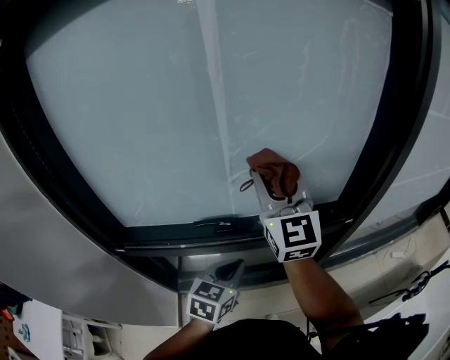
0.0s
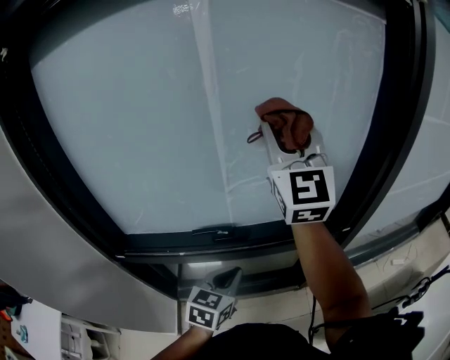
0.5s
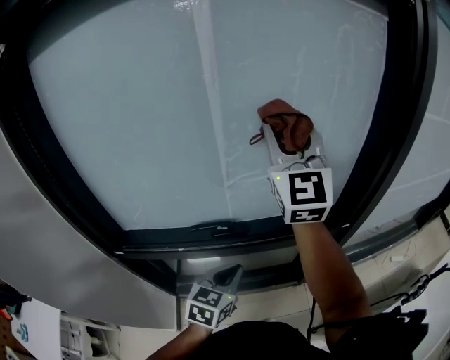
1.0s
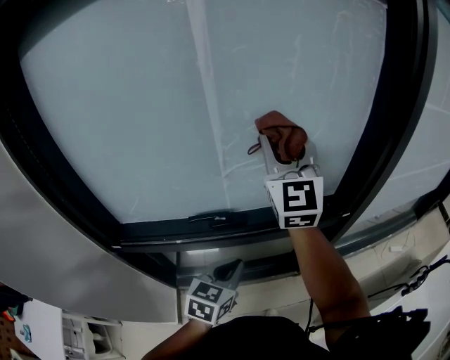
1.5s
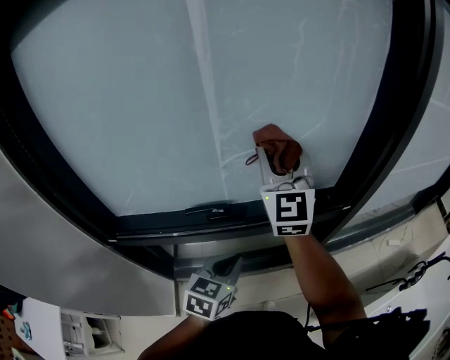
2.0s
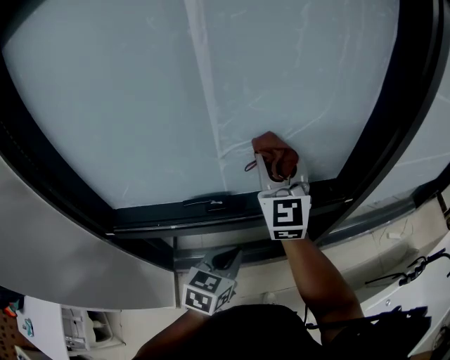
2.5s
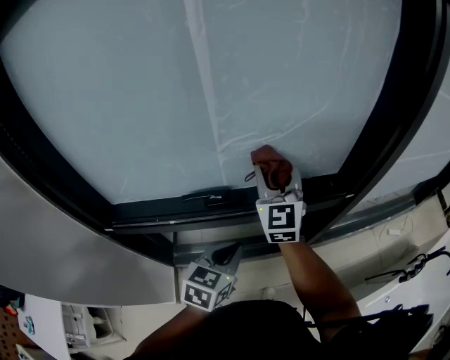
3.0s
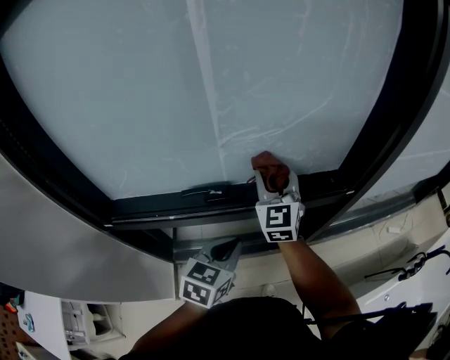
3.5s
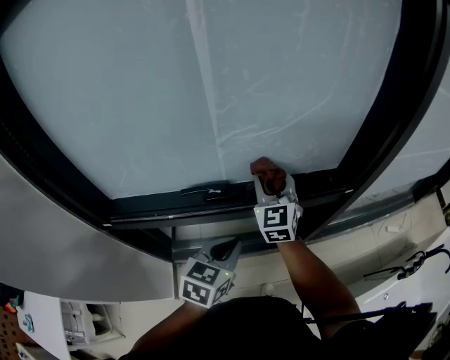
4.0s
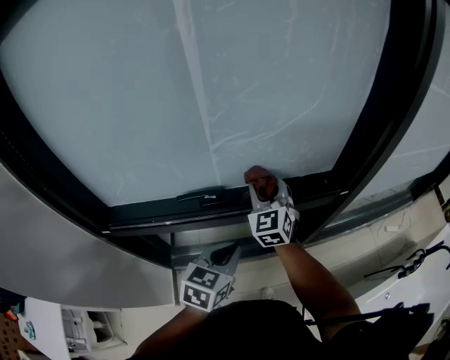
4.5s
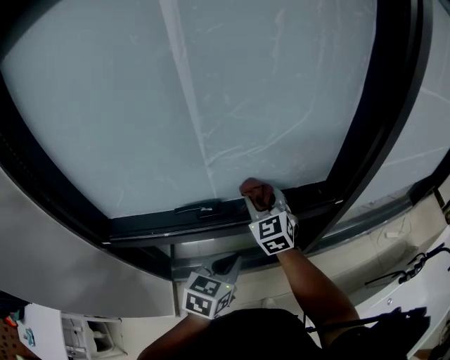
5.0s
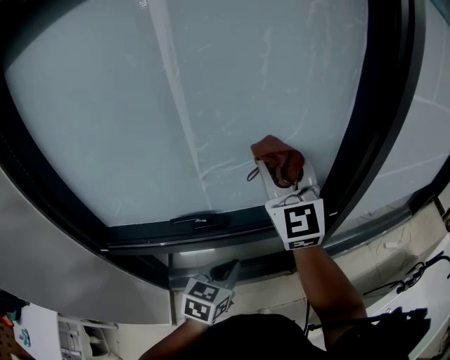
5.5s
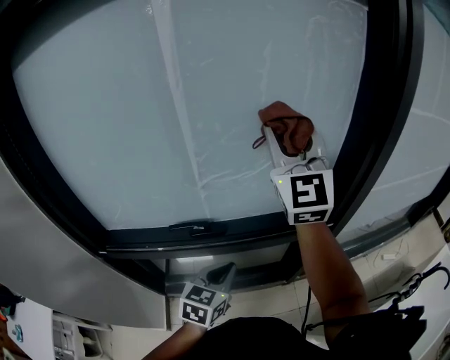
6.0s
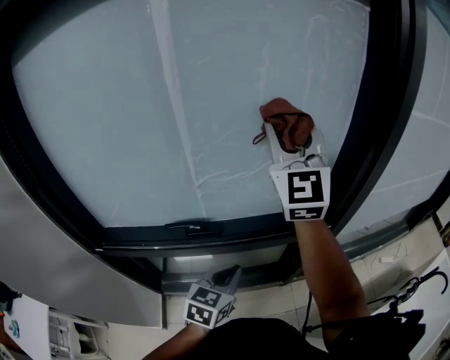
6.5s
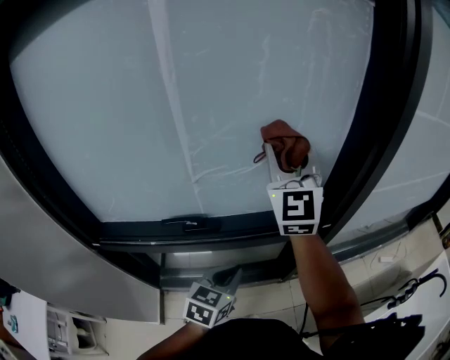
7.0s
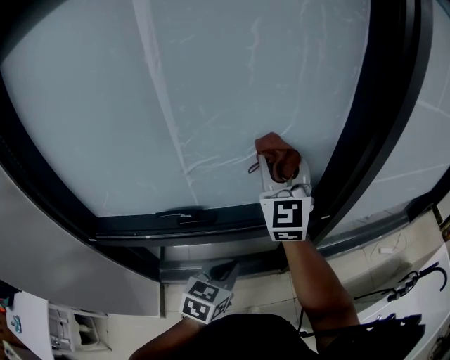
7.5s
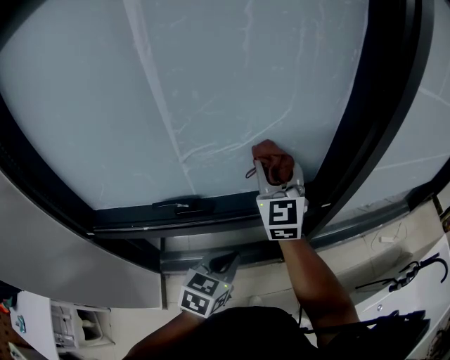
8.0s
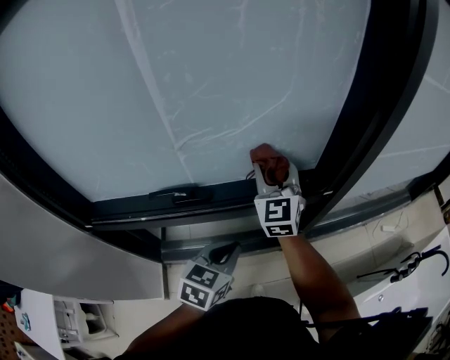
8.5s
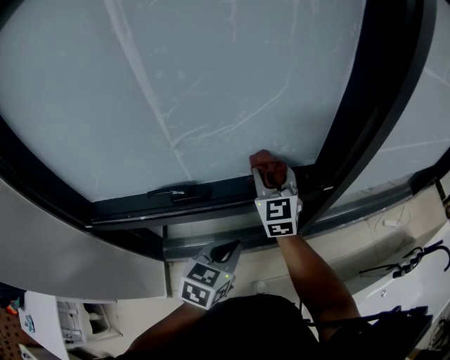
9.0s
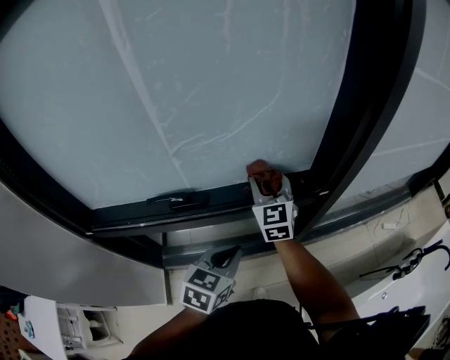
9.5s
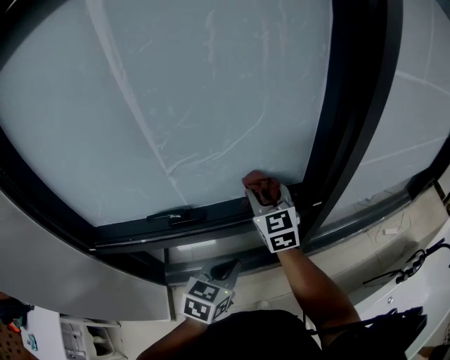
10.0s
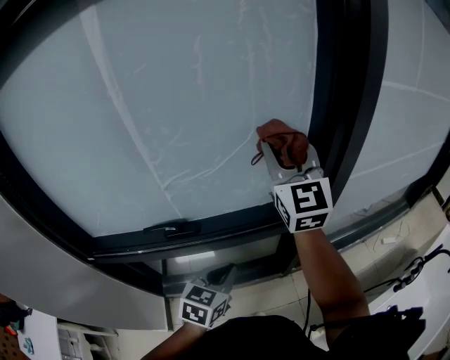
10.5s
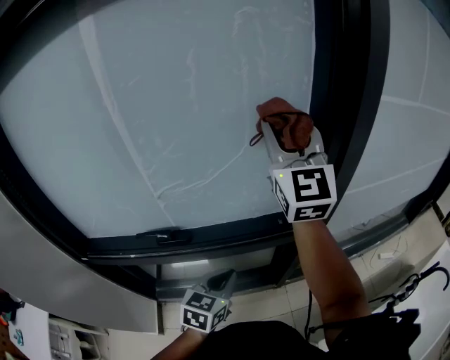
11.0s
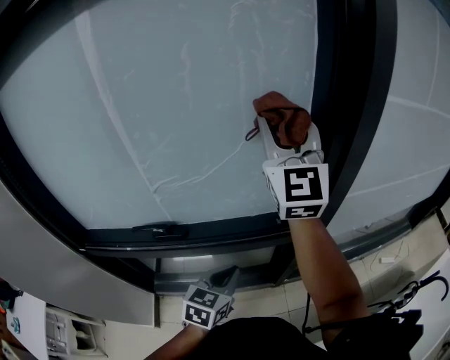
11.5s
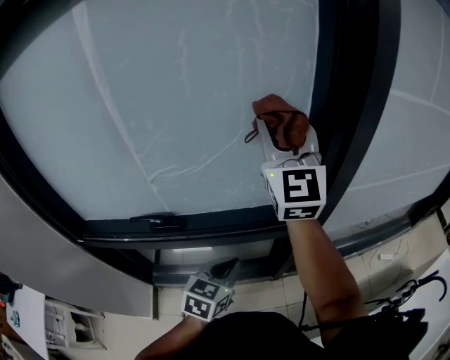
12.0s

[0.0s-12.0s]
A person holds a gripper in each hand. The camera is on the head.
0.0s to 2.0s: The right gripper moves roughly 15 cm upward and comes back.
2.0s to 4.0s: The right gripper shifts some 20 cm downward.
4.0s to 6.0s: The right gripper shifts some 30 cm upward, and swivels some 30 degrees.
6.0s to 8.0s: The right gripper travels downward by approximately 20 cm. The left gripper moves some 5 cm.
8.0s to 10.0s: The right gripper is displaced downward by about 10 cm.
10.0s to 12.0s: The left gripper heads to the right, covering about 5 cm. The right gripper travels upward by roughly 25 cm, and turns by roughly 30 degrees.

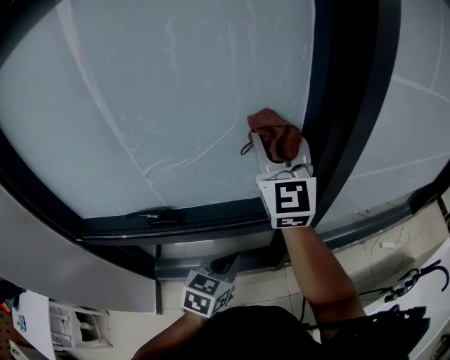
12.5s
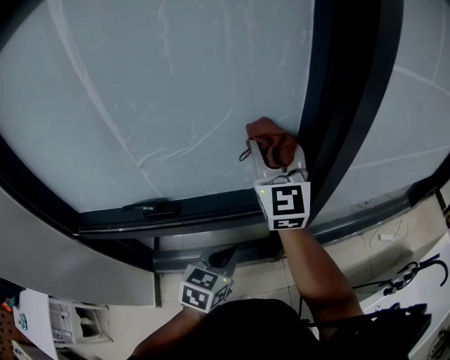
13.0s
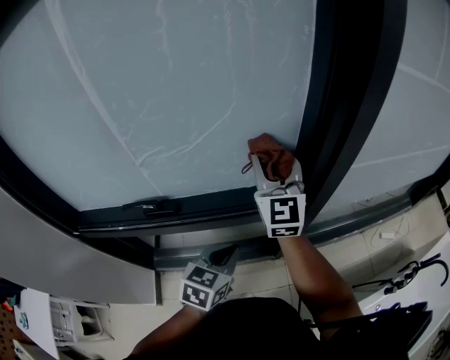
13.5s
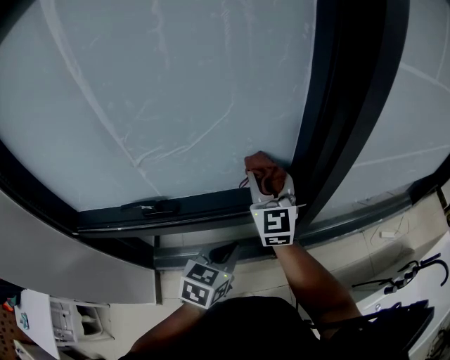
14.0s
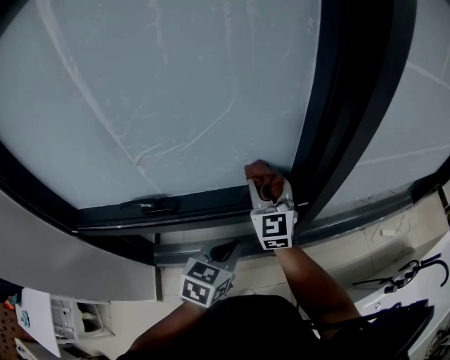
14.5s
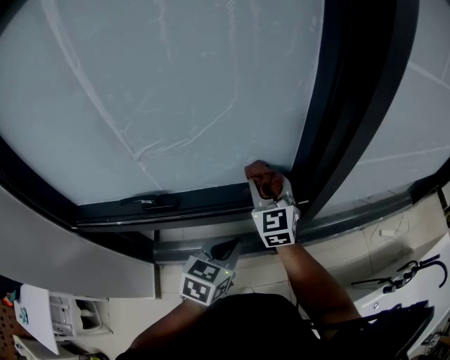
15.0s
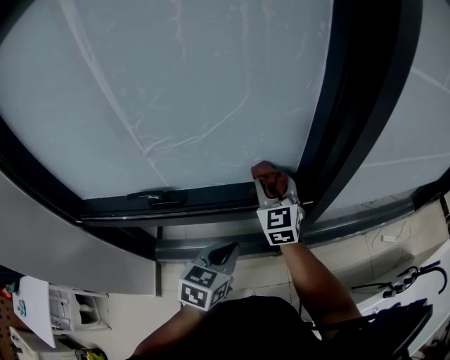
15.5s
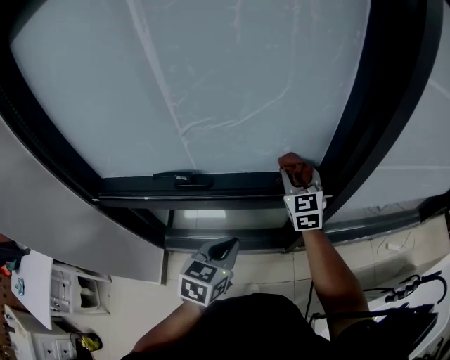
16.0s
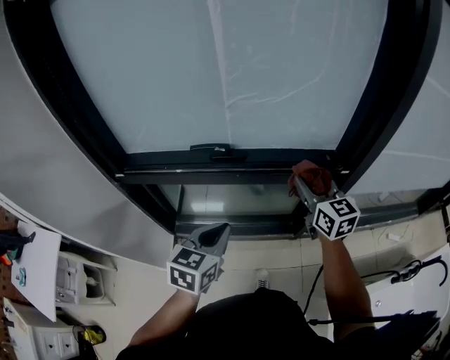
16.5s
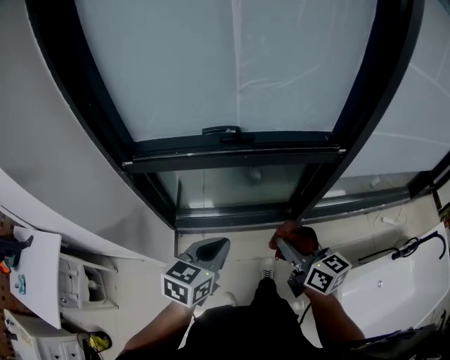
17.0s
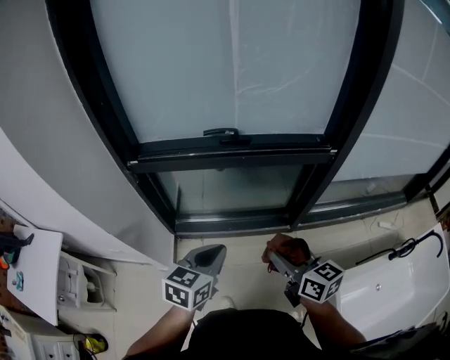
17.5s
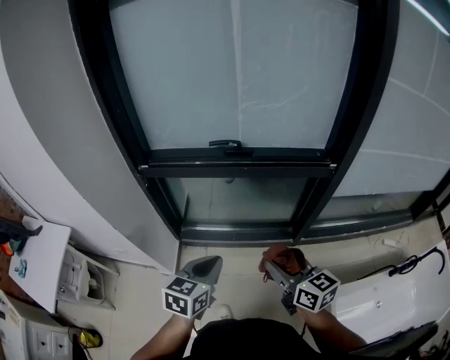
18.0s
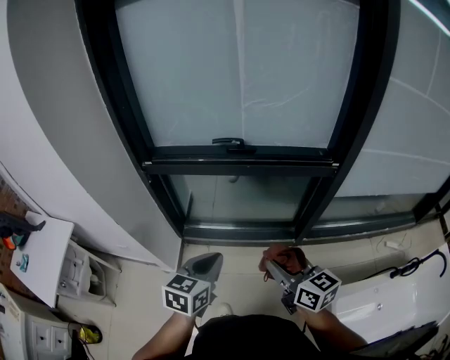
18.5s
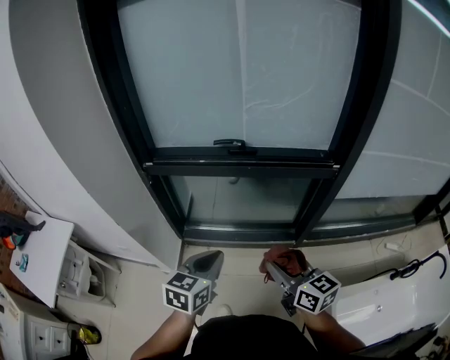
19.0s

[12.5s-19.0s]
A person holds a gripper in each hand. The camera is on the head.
12.5s to 14.5s: The right gripper heads downward, covering roughly 20 cm.
14.5s to 17.0s: The left gripper heads backward and to the left, covering roughly 35 cm; the right gripper heads backward, covering approximately 40 cm, and twists approximately 40 degrees clockwise, seen from behind.
17.0s to 19.0s: The two grippers go some 10 cm backward.

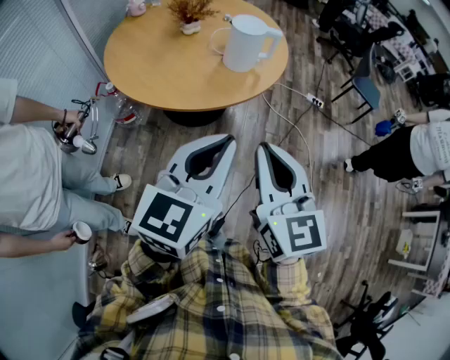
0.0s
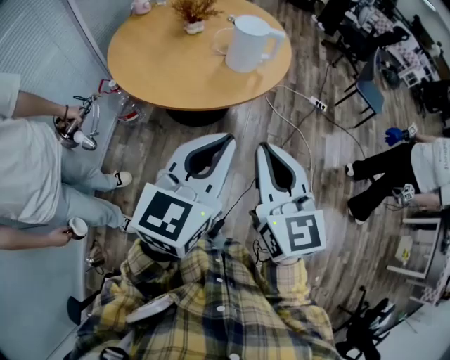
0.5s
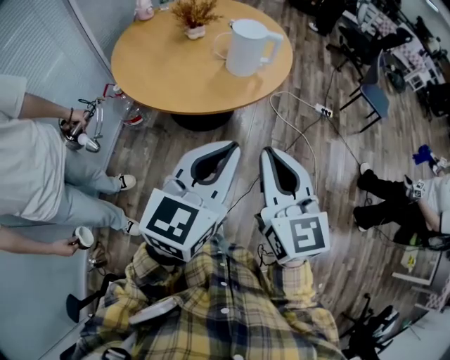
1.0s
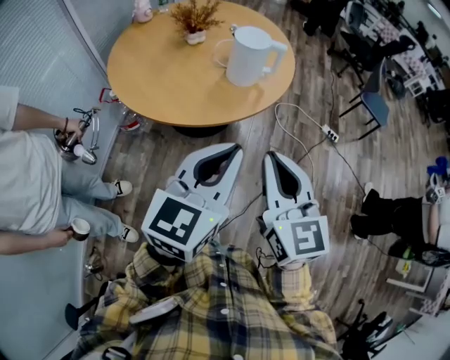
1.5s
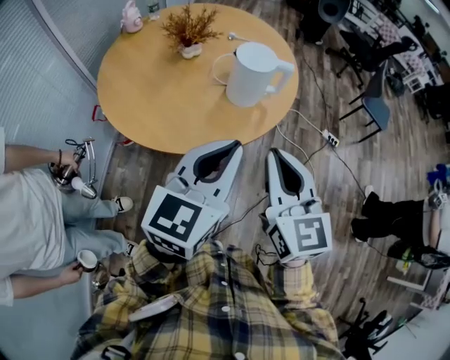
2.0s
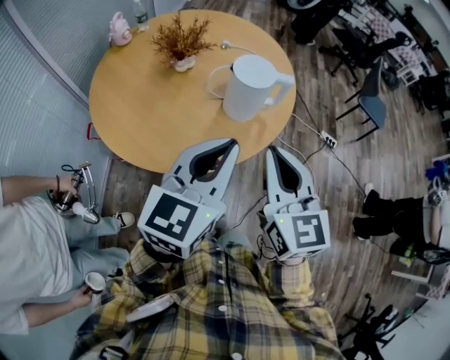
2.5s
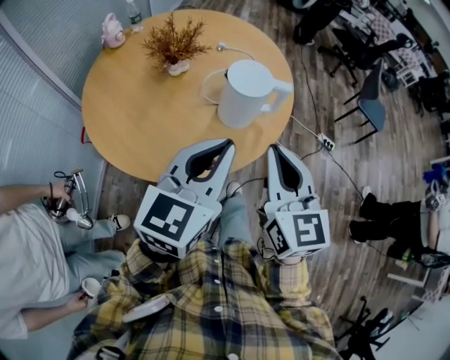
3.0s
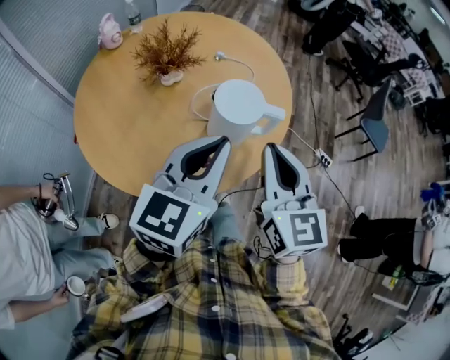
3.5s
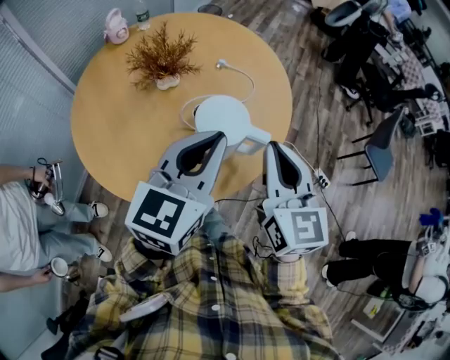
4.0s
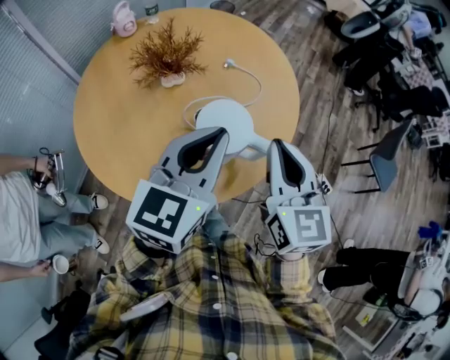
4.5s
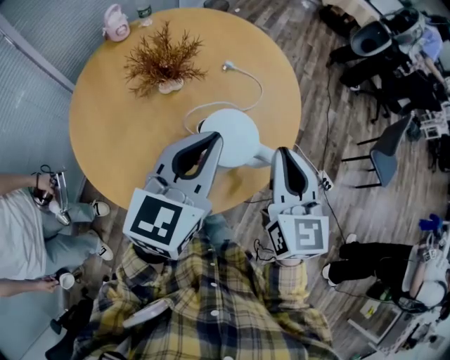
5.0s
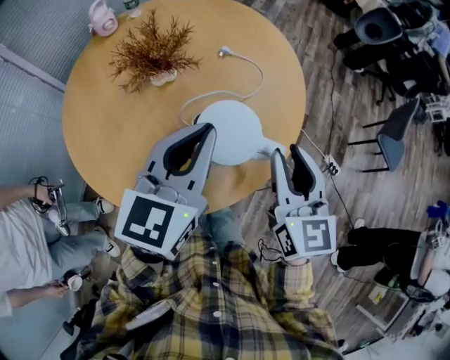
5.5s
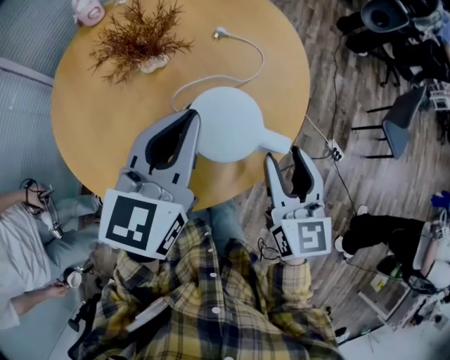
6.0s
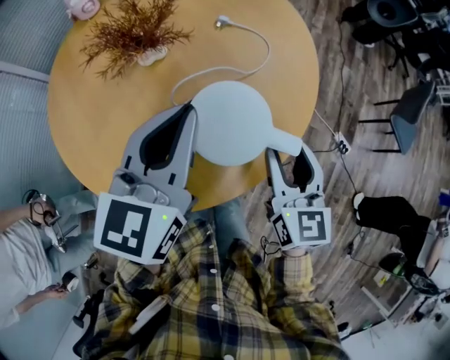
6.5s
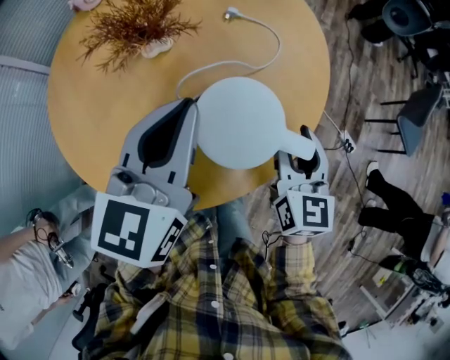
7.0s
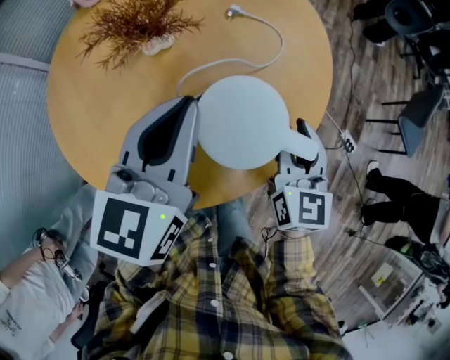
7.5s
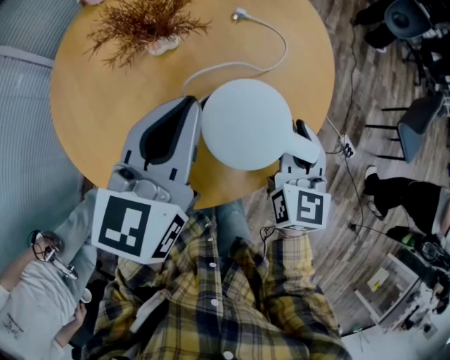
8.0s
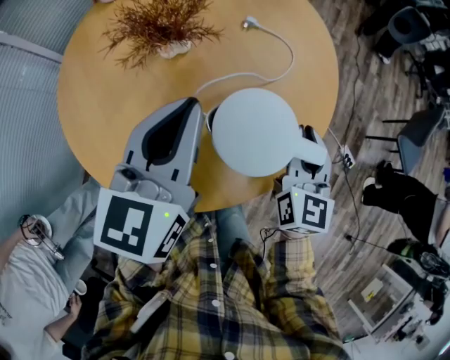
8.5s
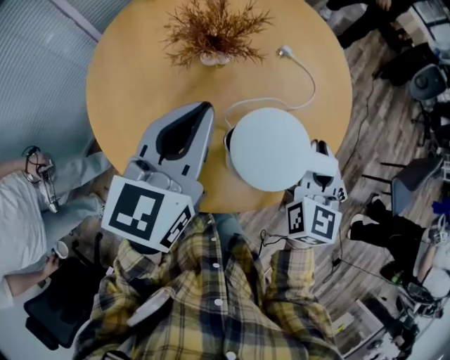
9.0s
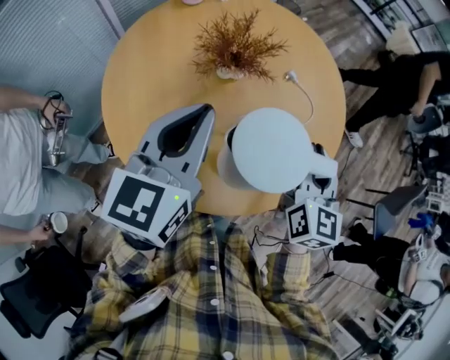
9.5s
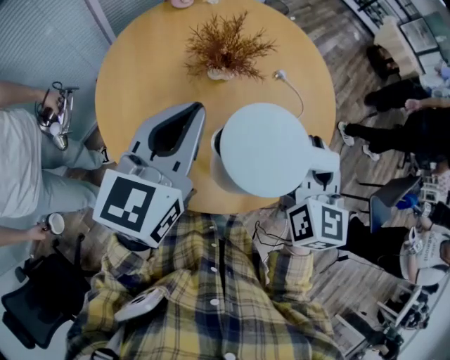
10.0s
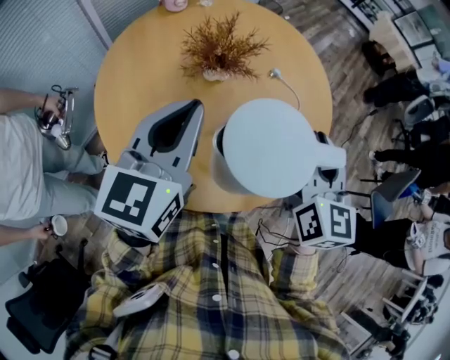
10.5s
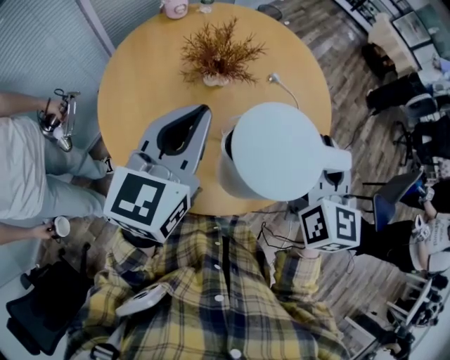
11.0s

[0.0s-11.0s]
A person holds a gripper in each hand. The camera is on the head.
0.0s to 2.0s: The two grippers go approximately 20 cm forward.
2.0s to 3.5s: The two grippers go about 20 cm forward.
3.5s to 5.5s: The left gripper heads forward, covering roughly 15 cm; the right gripper shifts some 15 cm forward, to the right and downward, and opens.
5.5s to 7.5s: The right gripper goes approximately 15 cm downward and forward. Meanwhile the left gripper goes approximately 5 cm downward.
7.5s to 9.0s: The left gripper moves to the left, roughly 5 cm. The right gripper heads upward, covering approximately 5 cm.
9.0s to 11.0s: The left gripper is displaced upward by roughly 5 cm. Meanwhile the right gripper is displaced upward by approximately 15 cm.
